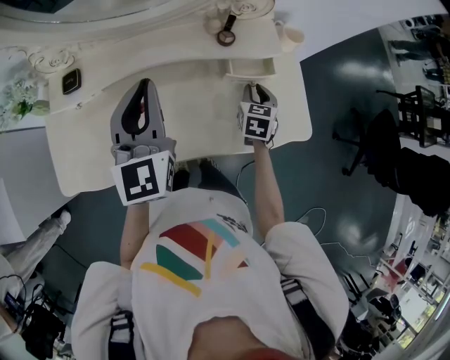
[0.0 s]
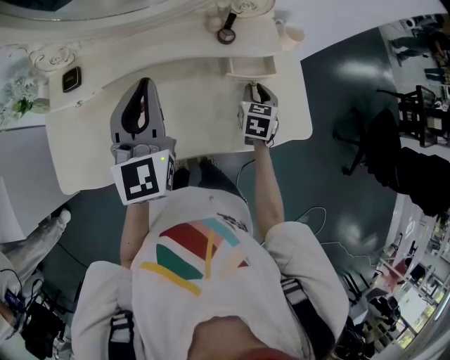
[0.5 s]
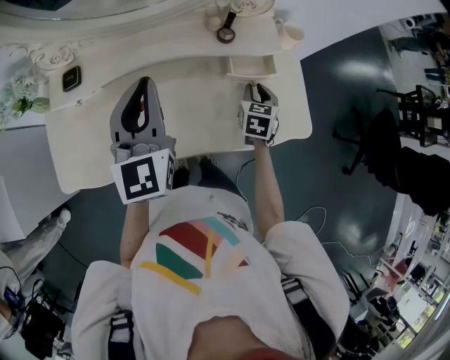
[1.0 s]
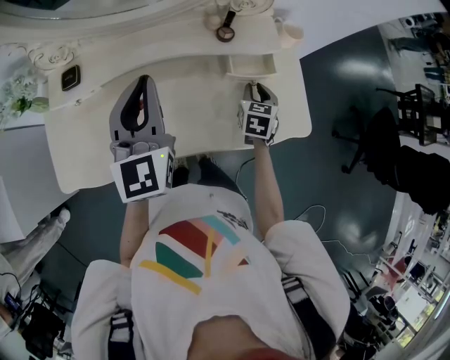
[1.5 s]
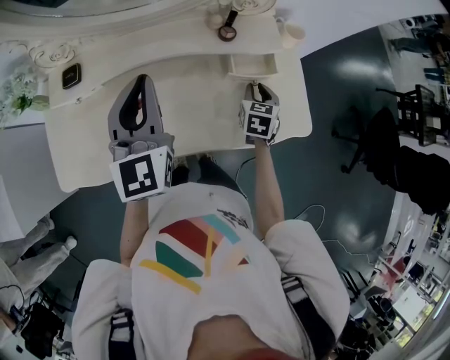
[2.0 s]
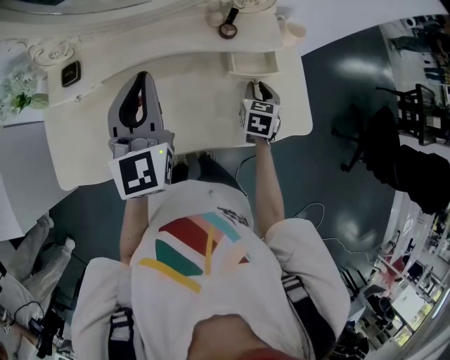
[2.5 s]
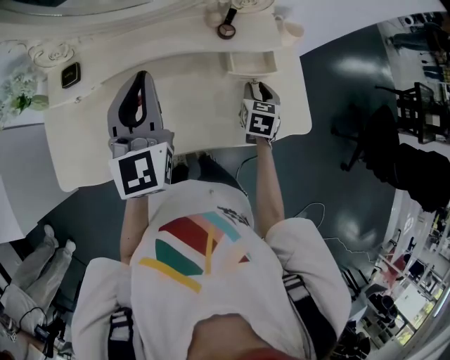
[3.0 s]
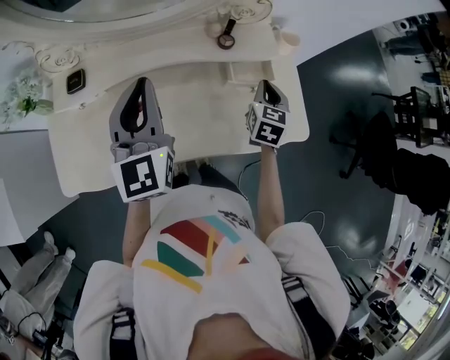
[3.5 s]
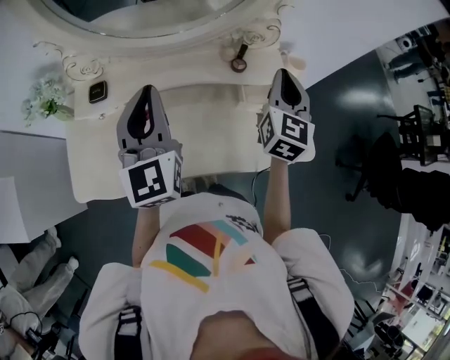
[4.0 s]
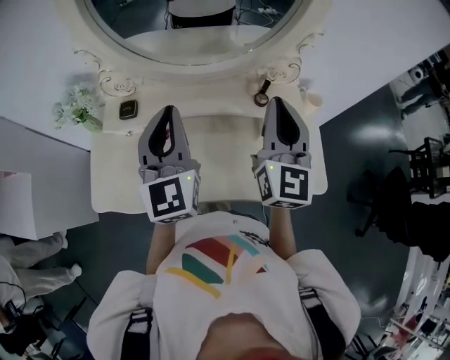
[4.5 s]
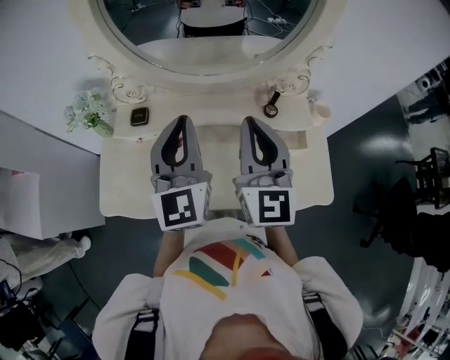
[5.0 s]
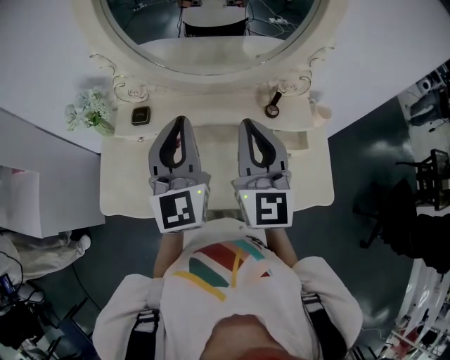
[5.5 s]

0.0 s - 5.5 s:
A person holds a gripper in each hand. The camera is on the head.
0.0 s - 2.0 s: The two grippers keep their place.
2.0 s - 3.5 s: The right gripper travels upward by approximately 10 cm.
3.5 s - 5.5 s: The right gripper heads upward and to the left, covering approximately 35 cm, and angles its fingers upward, by roughly 40 degrees. The left gripper is displaced upward and to the left by roughly 10 cm.

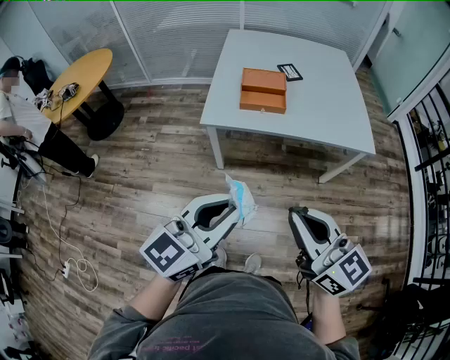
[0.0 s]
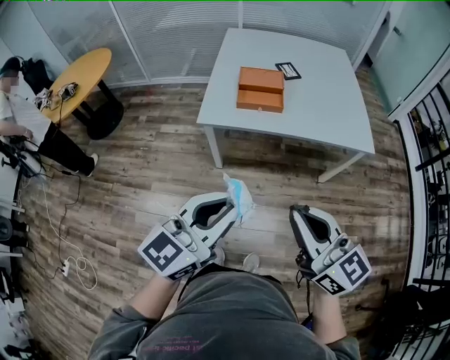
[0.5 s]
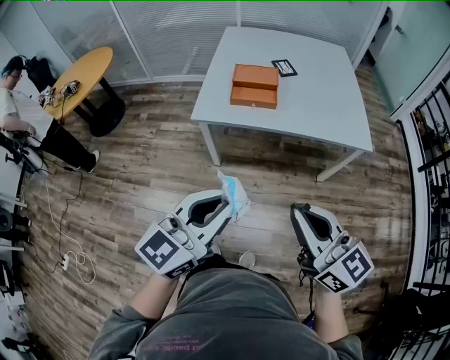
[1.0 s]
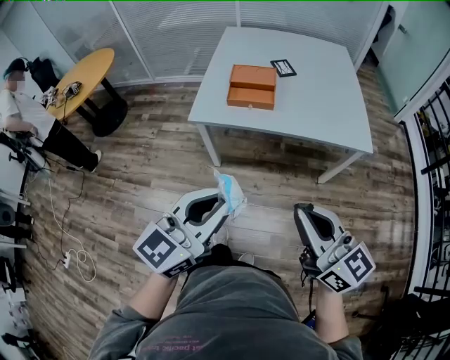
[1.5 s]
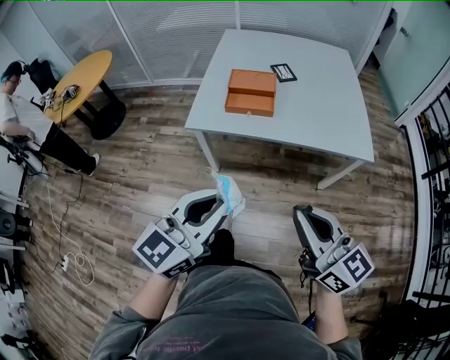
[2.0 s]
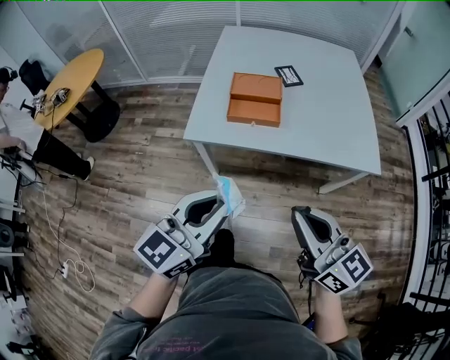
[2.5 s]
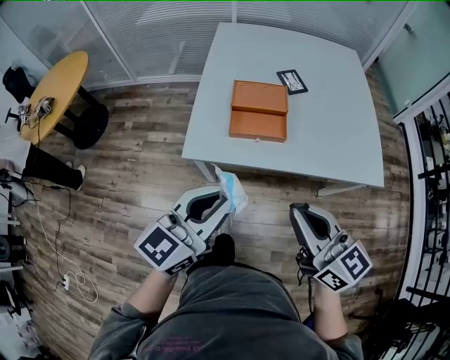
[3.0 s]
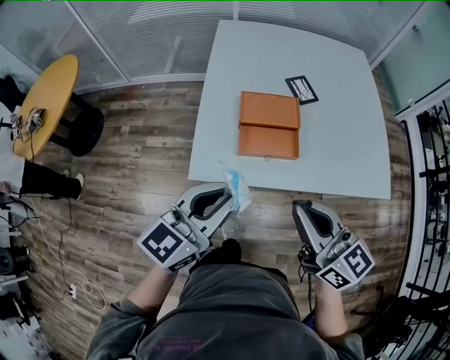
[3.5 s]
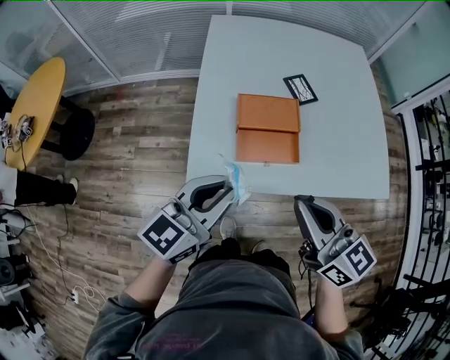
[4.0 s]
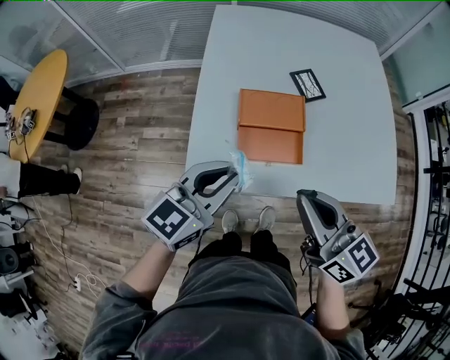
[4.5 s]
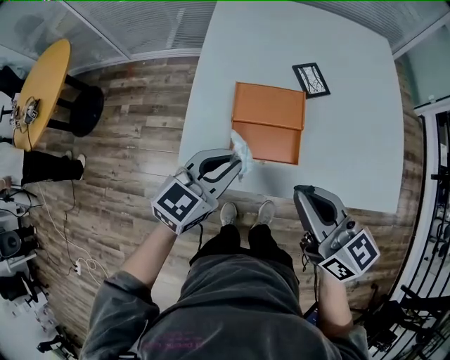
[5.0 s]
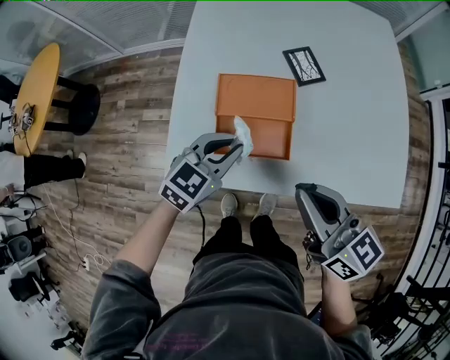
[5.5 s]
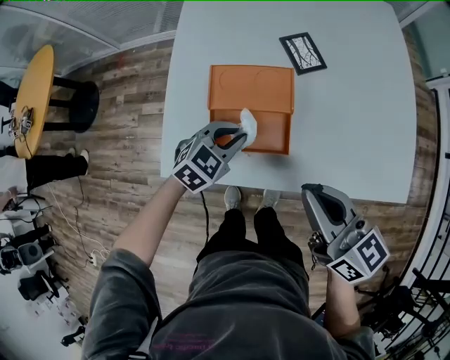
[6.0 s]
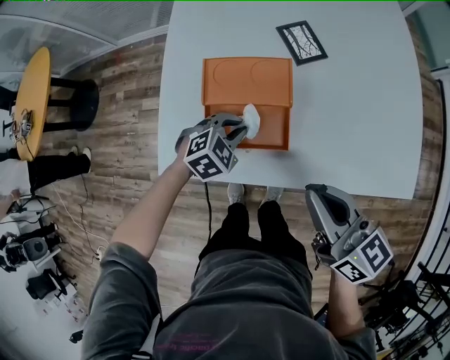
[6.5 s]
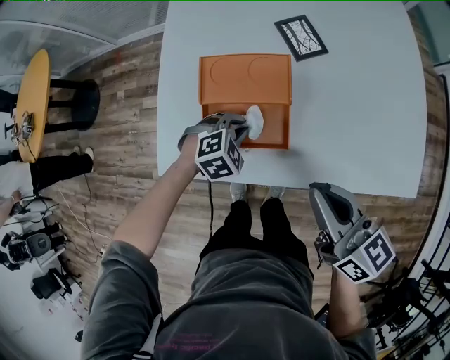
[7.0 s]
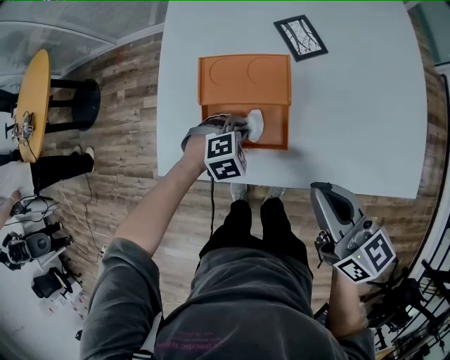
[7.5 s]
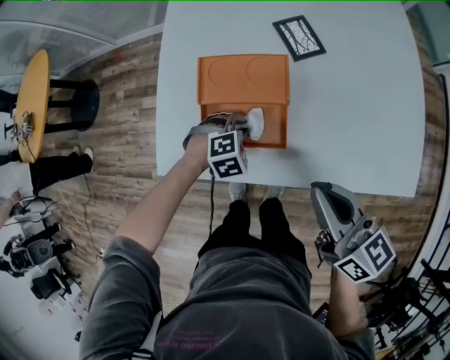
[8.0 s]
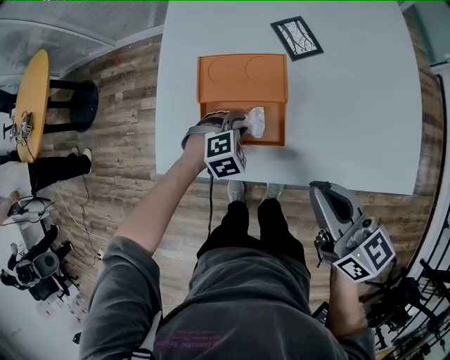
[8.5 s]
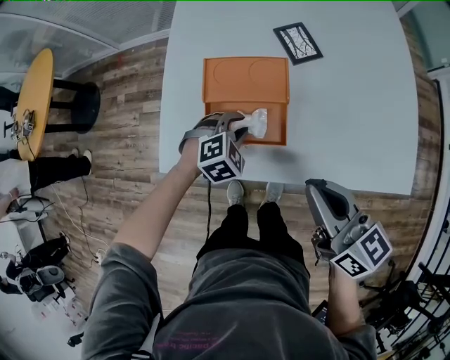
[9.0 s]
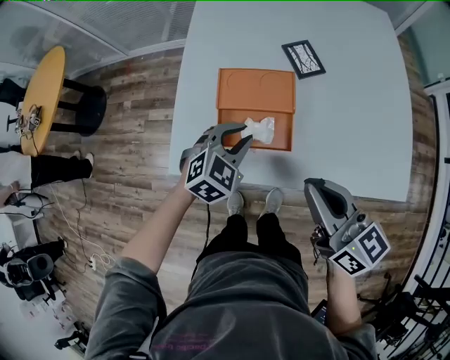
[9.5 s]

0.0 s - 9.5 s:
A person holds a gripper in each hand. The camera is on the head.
0.0 s - 2.0 s: Both grippers move to the right and forward, about 10 cm.
2.0 s - 4.0 s: The two grippers travel together, forward, some 40 cm.
4.0 s - 5.5 s: The right gripper moves to the right, forward and downward, about 15 cm. Meanwhile the left gripper moves downward, forward and to the right, approximately 25 cm, and changes its angle by roughly 30 degrees.
5.5 s - 7.5 s: The right gripper shifts roughly 10 cm to the right and downward; the left gripper is displaced downward by about 20 cm, and points its fingers some 40 degrees further downward.
7.5 s - 9.5 s: The left gripper is displaced upward by some 15 cm, and swivels approximately 30 degrees. The right gripper heads upward, covering approximately 5 cm.

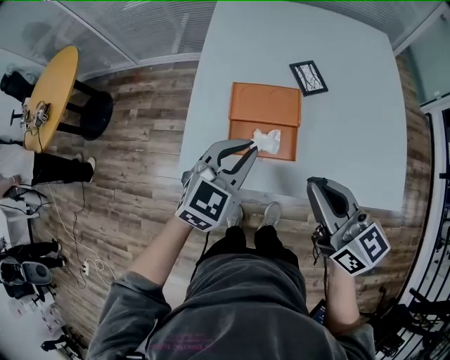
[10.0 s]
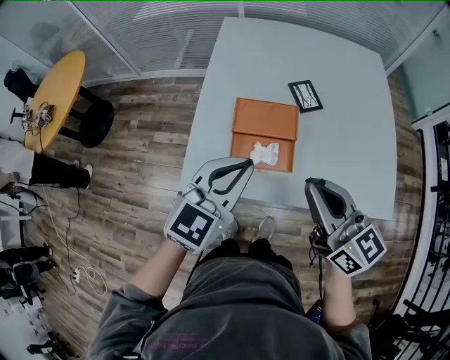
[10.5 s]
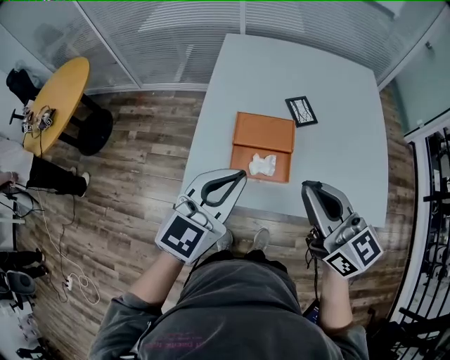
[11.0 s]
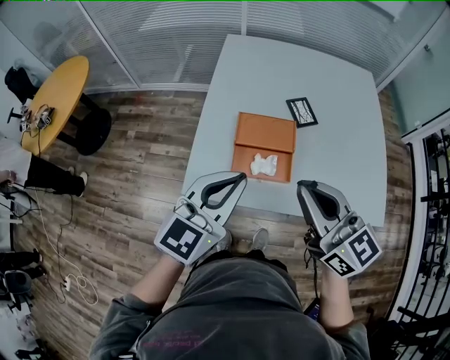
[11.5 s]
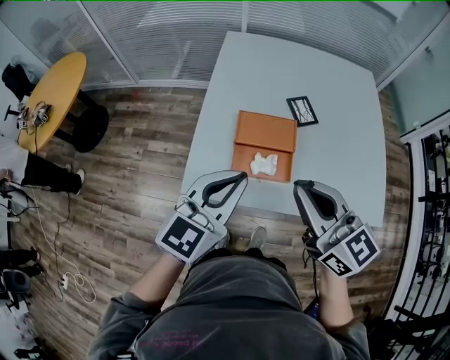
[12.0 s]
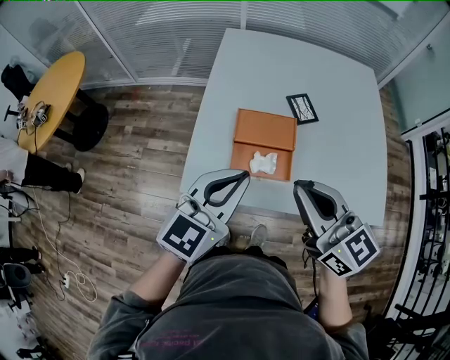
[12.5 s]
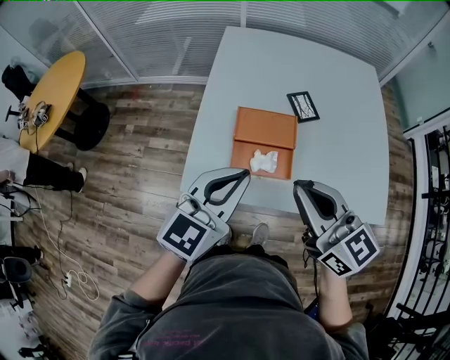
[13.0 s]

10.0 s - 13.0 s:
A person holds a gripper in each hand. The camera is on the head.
10.0 s - 11.5 s: The left gripper is displaced upward, backward and to the left by approximately 15 cm, and swivels roughly 20 degrees, while the right gripper travels upward and to the left by approximately 10 cm.
11.5 s - 13.0 s: There are only small adjustments of the grippers.

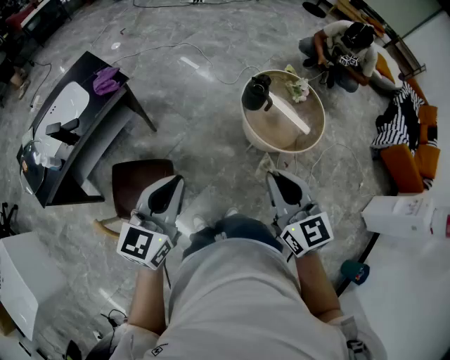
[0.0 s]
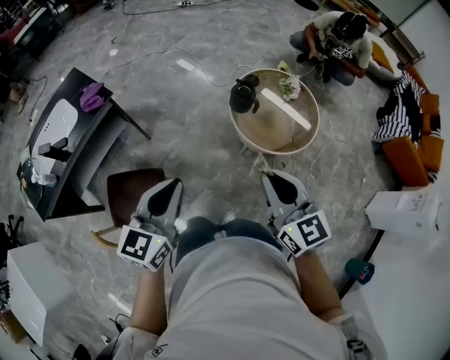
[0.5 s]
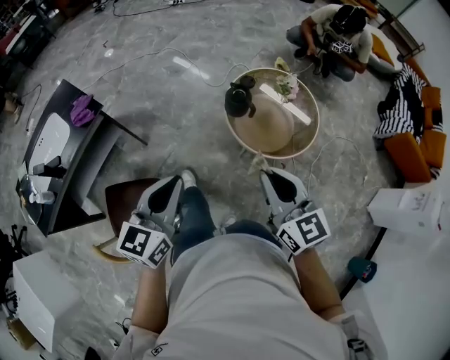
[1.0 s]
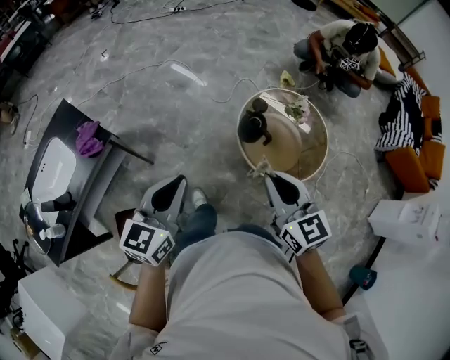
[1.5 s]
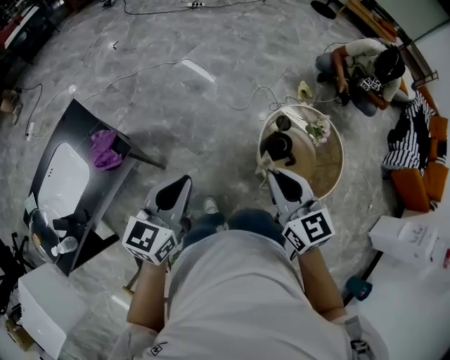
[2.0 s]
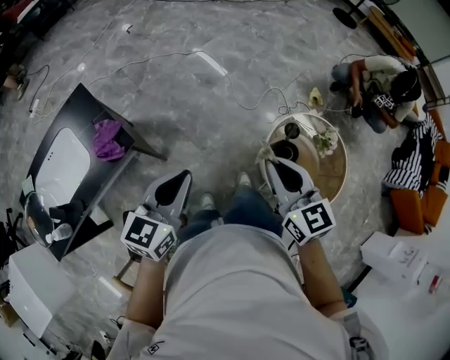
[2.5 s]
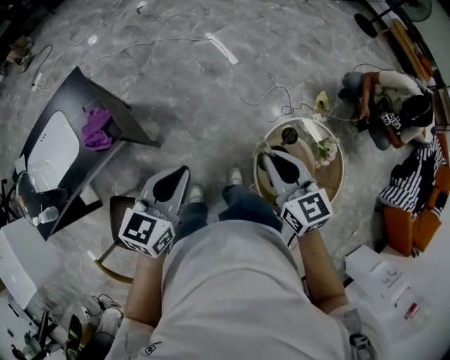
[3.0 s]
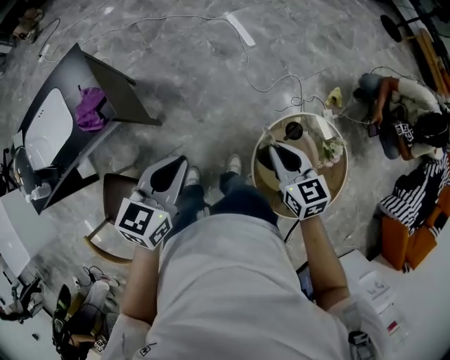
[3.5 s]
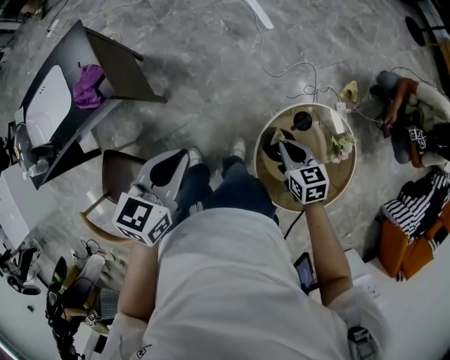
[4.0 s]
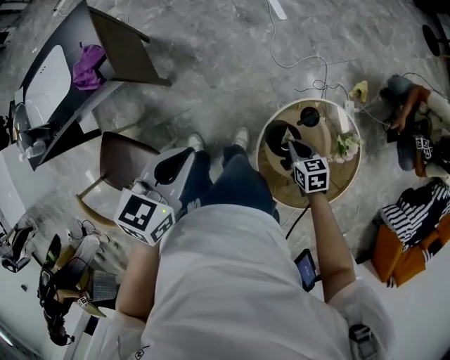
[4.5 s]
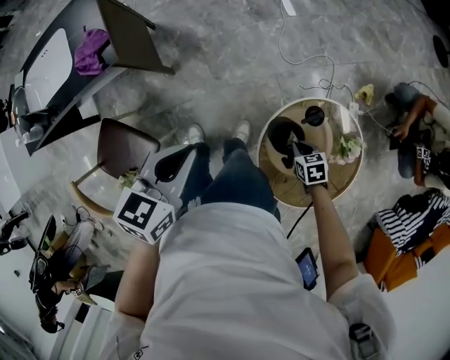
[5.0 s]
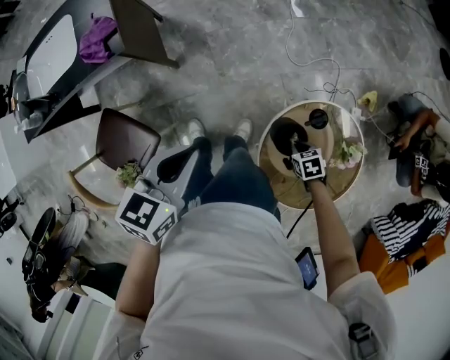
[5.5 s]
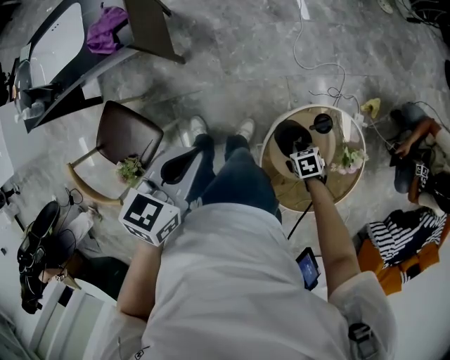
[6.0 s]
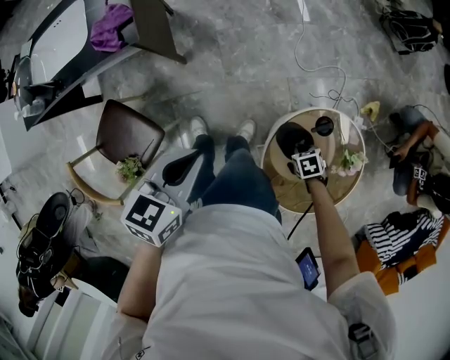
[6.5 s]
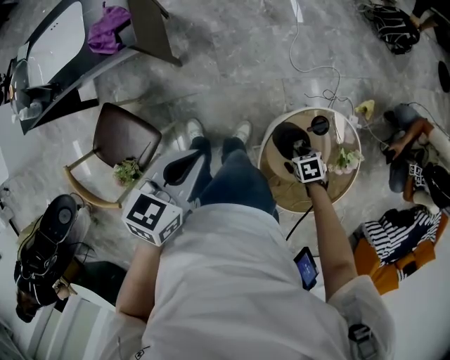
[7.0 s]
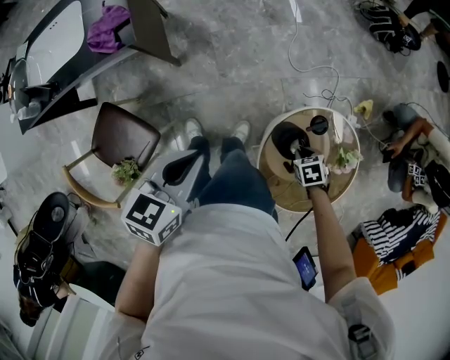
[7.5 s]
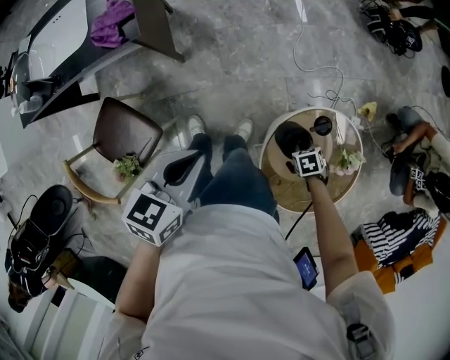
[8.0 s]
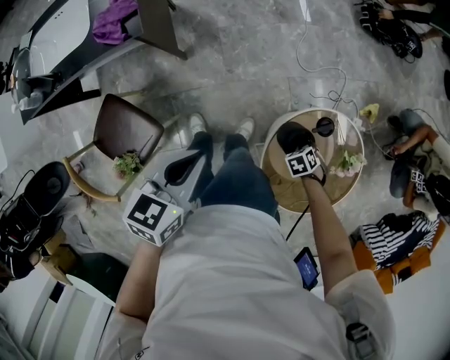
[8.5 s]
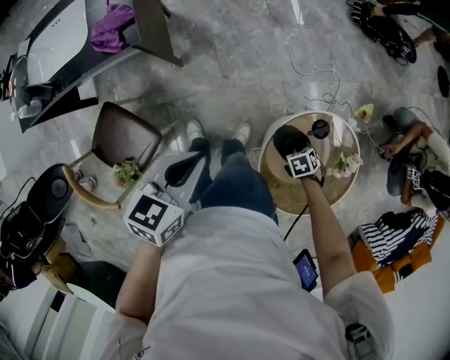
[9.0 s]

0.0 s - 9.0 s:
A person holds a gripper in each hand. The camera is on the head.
0.0 s - 2.0 s: The two grippers go about 40 cm forward.
2.0 s - 4.5 s: The left gripper ends up approximately 20 cm from where it was, and rotates some 30 degrees, while the right gripper shifts roughly 35 cm downward, and tips its fingers downward by about 40 degrees.
4.5 s - 7.0 s: The right gripper is displaced downward by some 10 cm, and turns by about 30 degrees. The left gripper ends up about 5 cm from where it was.
7.0 s - 9.0 s: The grippers make only small movements.
